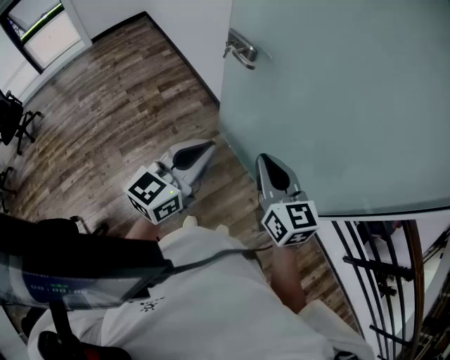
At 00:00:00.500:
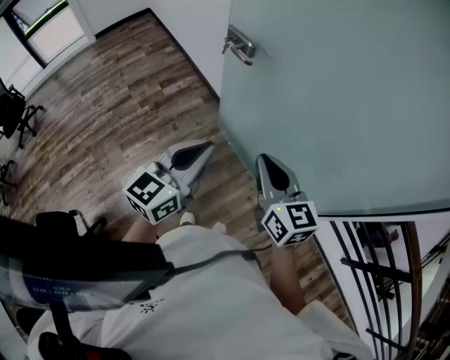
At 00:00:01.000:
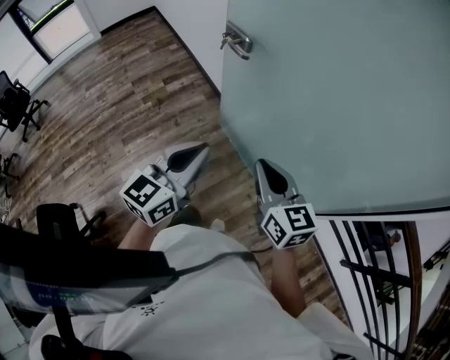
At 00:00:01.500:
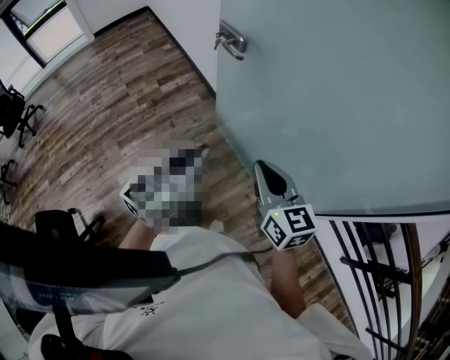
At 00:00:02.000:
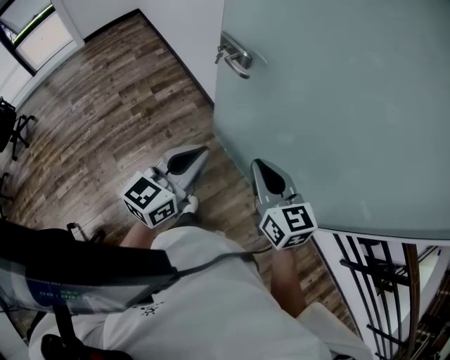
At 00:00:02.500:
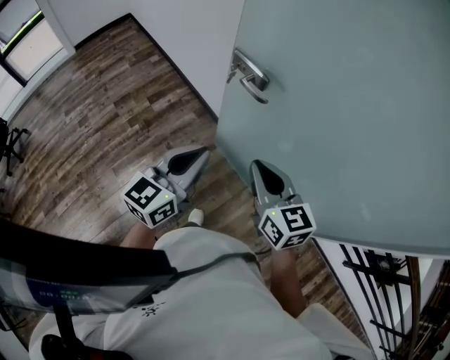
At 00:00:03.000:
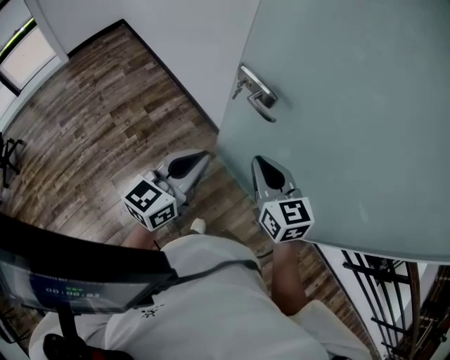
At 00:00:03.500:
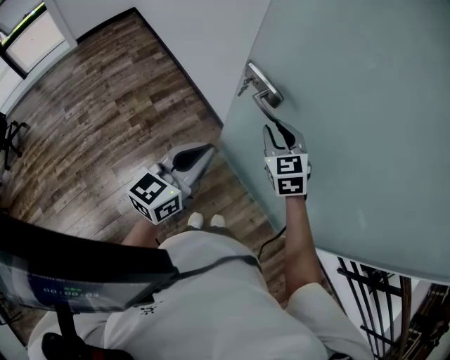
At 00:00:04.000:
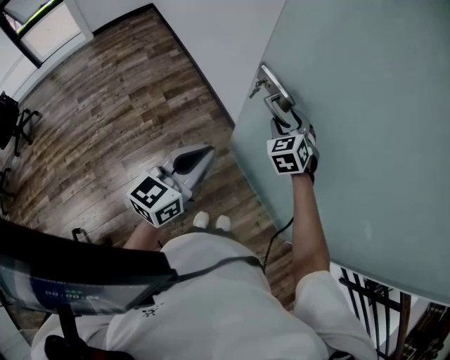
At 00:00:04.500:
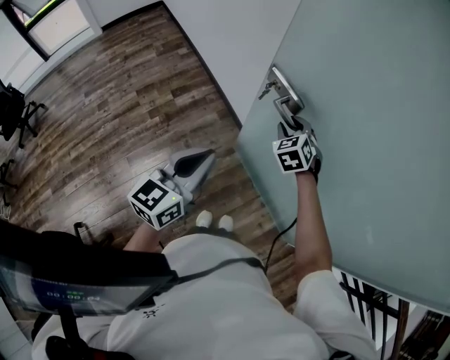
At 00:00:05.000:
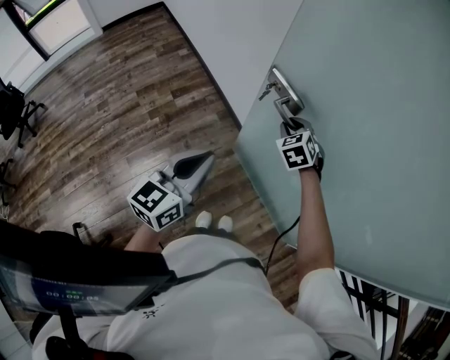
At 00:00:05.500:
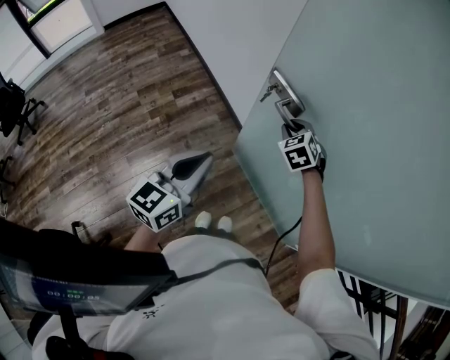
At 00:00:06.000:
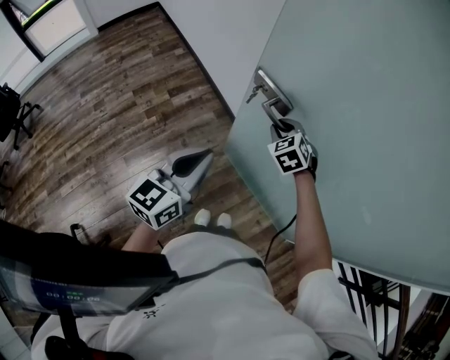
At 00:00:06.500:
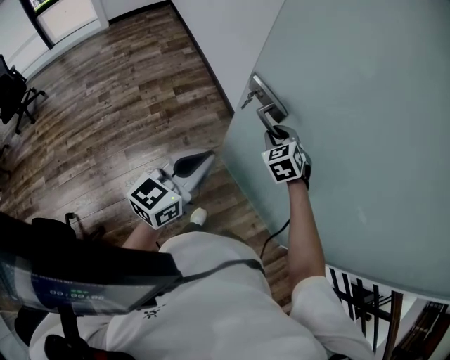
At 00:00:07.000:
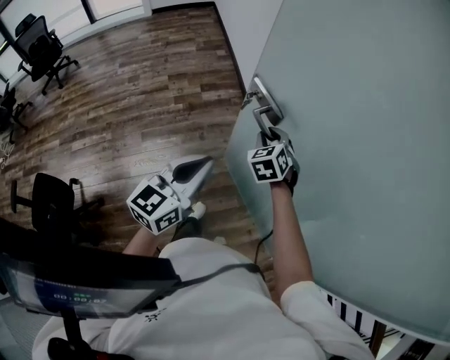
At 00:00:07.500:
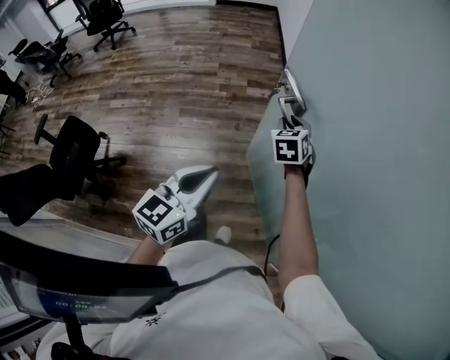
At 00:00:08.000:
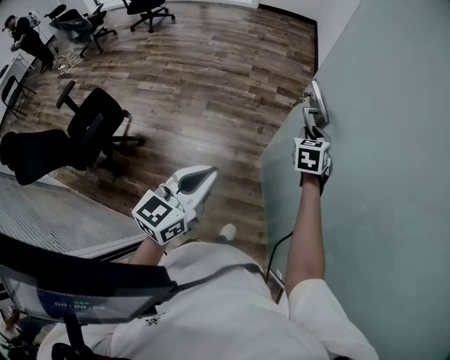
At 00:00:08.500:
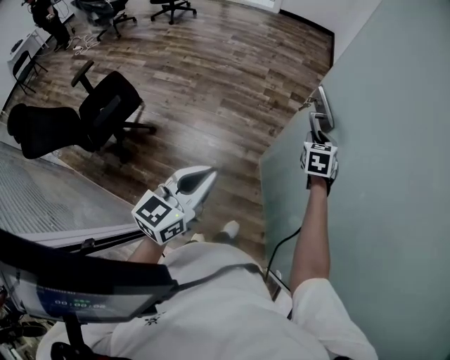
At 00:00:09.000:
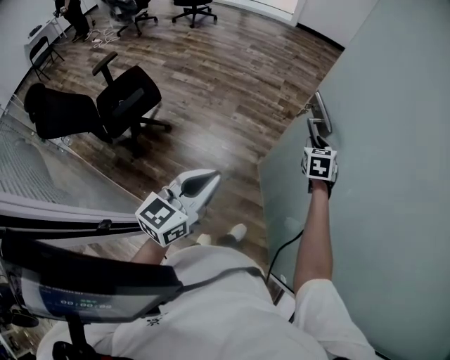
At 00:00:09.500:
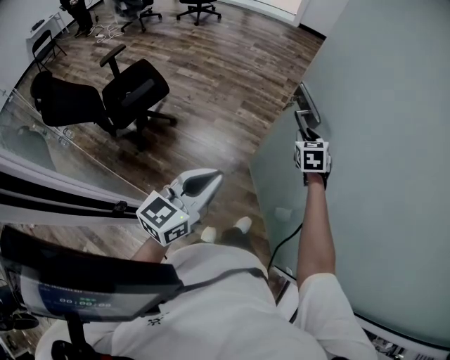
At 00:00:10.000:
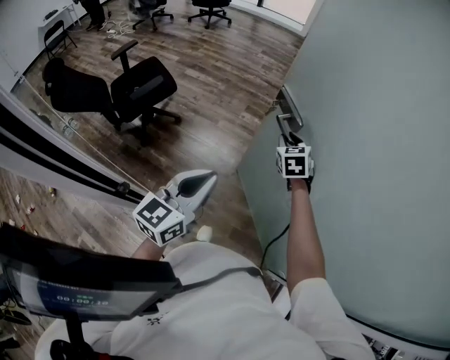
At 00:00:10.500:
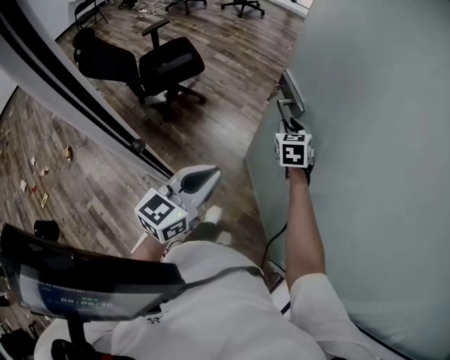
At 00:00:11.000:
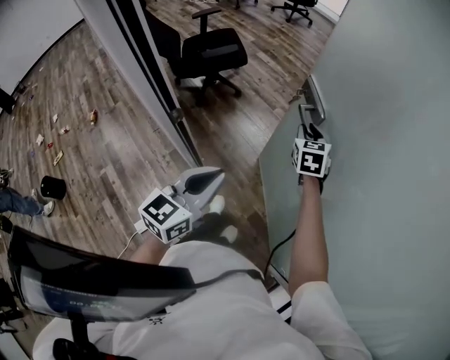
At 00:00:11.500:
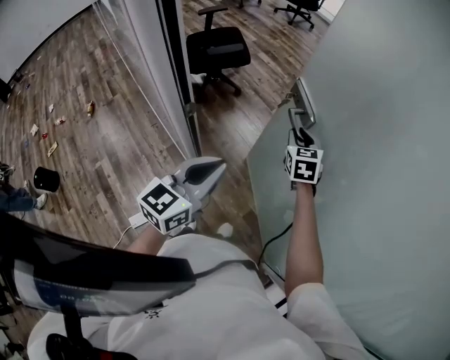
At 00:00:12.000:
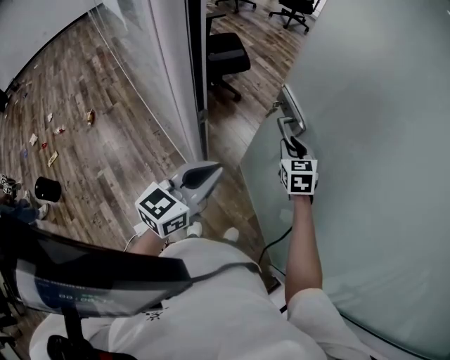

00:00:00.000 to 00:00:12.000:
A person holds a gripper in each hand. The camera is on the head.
00:00:00.000 to 00:00:02.000: Both grippers travel together forward, some 10 cm.
00:00:02.000 to 00:00:04.000: The right gripper moves forward, some 30 cm, rolls counterclockwise, seen from behind, by about 40 degrees, and opens its fingers; the left gripper travels to the left and forward by some 20 cm.
00:00:04.000 to 00:00:06.000: The left gripper ends up some 5 cm from where it was. The right gripper shifts roughly 5 cm backward, and closes.
00:00:06.000 to 00:00:08.000: The right gripper changes place by about 20 cm, while the left gripper ends up some 35 cm from where it was, and changes its angle by some 40 degrees.
00:00:08.000 to 00:00:10.000: Both grippers move backward and to the left, about 35 cm. The right gripper changes its angle by roughly 30 degrees.
00:00:10.000 to 00:00:12.000: The two grippers go roughly 25 cm backward and to the left. The right gripper turns by some 20 degrees.

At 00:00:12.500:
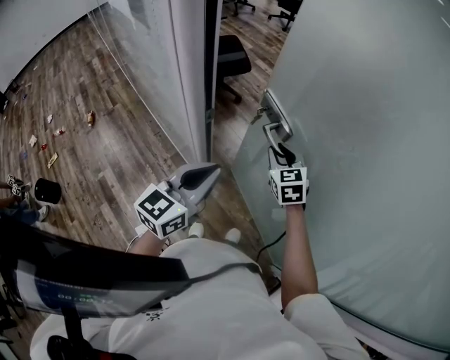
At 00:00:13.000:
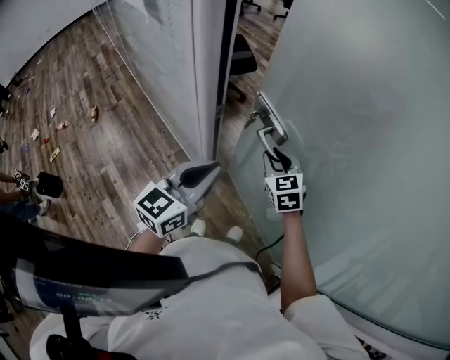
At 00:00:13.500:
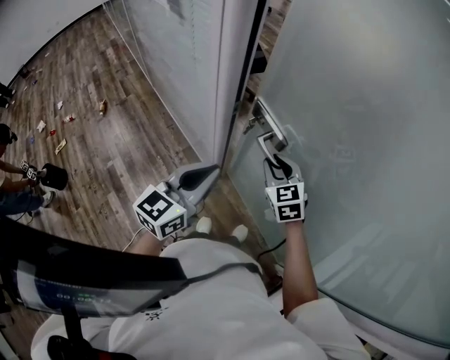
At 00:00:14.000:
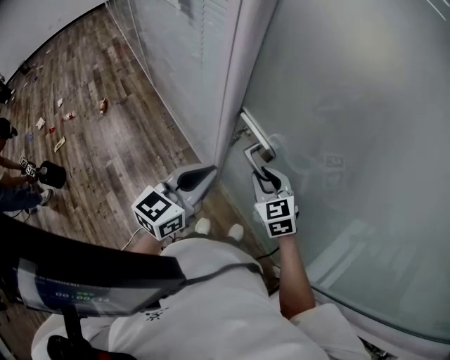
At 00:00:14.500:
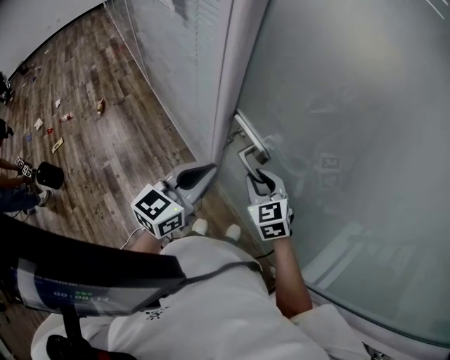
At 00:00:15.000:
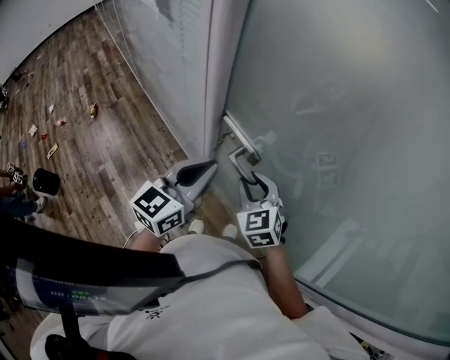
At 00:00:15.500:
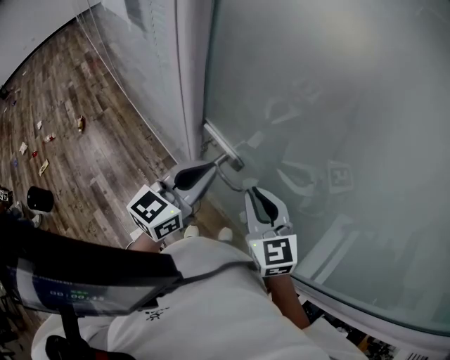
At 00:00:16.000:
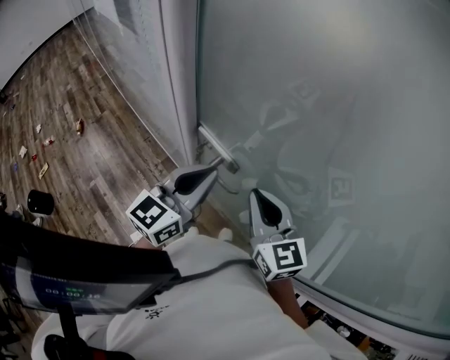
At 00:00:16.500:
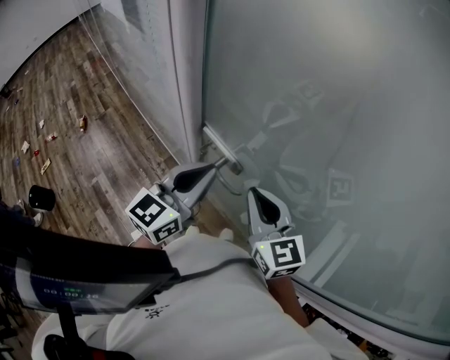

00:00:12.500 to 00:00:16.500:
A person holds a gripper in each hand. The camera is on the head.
00:00:12.500 to 00:00:14.500: The left gripper travels to the left and backward by about 10 cm, while the right gripper shifts roughly 20 cm backward and to the left.
00:00:14.500 to 00:00:16.500: The left gripper is displaced to the right and forward by about 10 cm. The right gripper heads upward and to the right, covering some 15 cm, turns by roughly 20 degrees, and closes.

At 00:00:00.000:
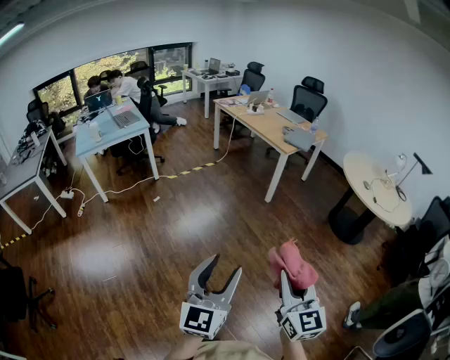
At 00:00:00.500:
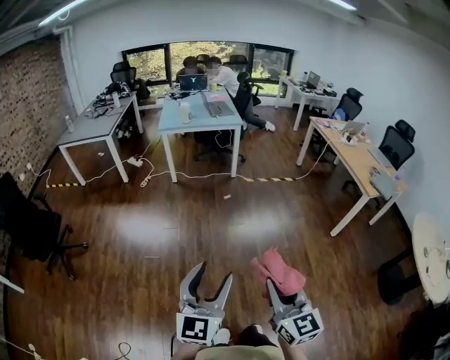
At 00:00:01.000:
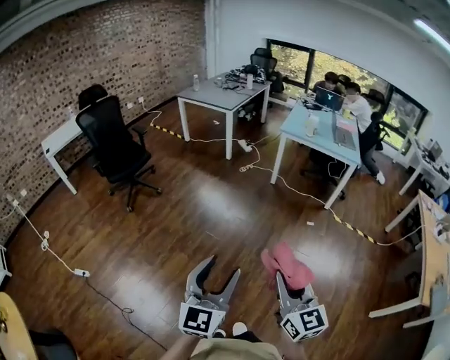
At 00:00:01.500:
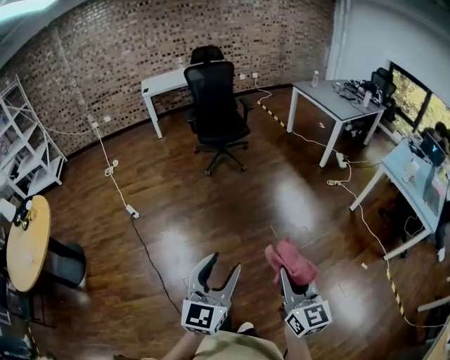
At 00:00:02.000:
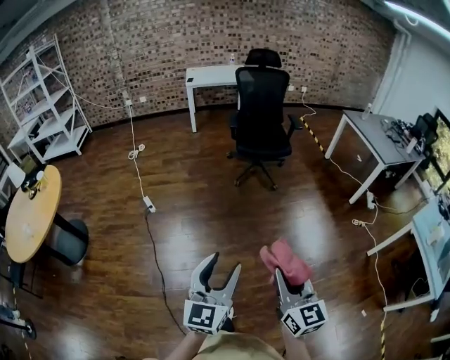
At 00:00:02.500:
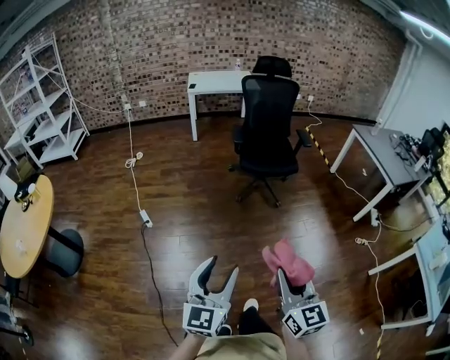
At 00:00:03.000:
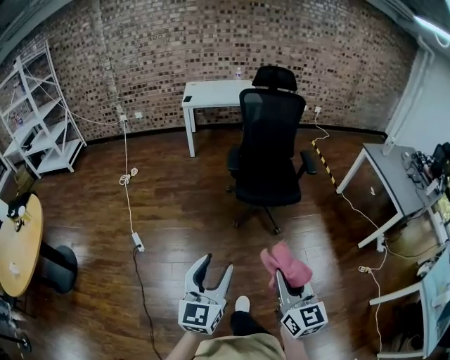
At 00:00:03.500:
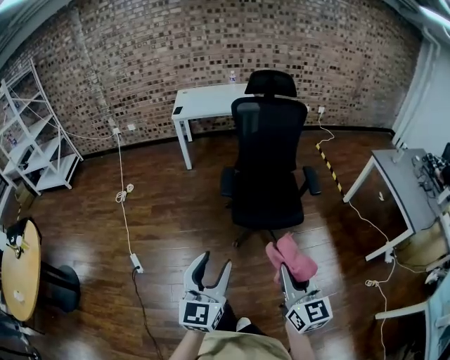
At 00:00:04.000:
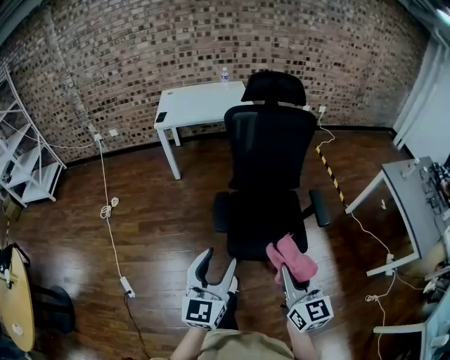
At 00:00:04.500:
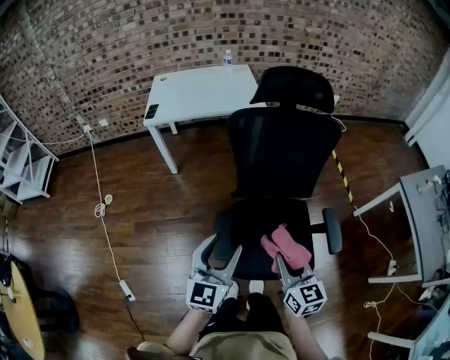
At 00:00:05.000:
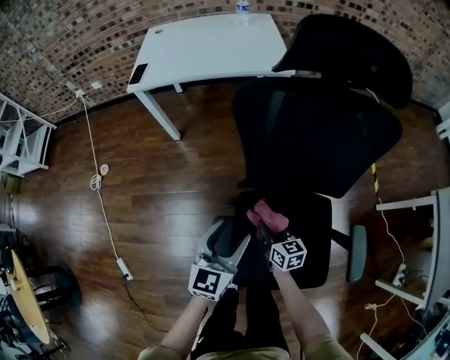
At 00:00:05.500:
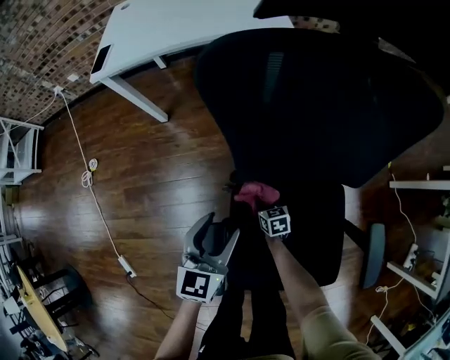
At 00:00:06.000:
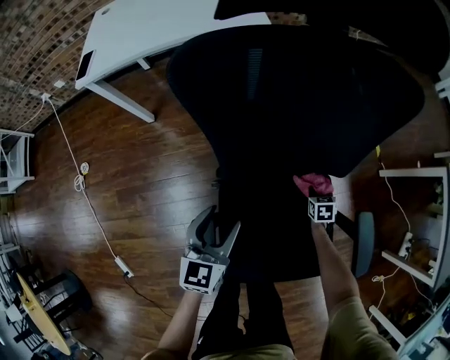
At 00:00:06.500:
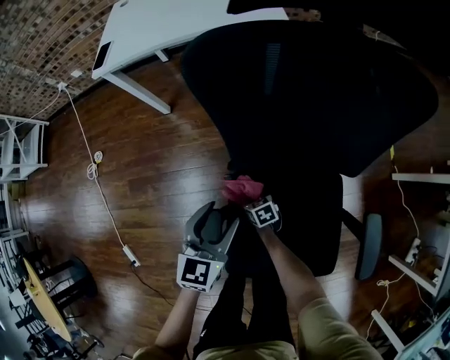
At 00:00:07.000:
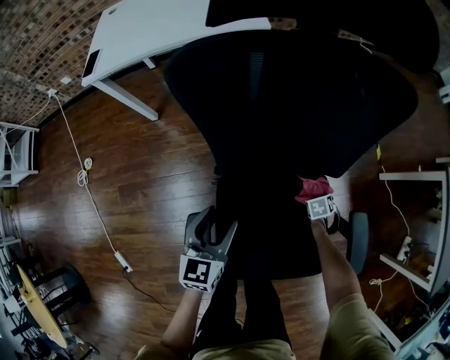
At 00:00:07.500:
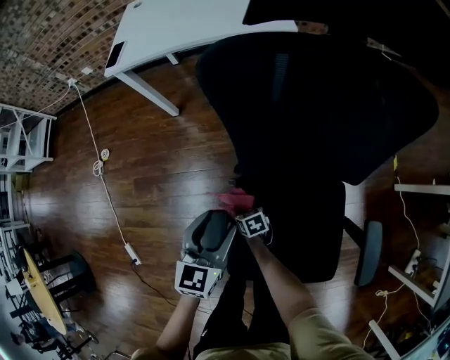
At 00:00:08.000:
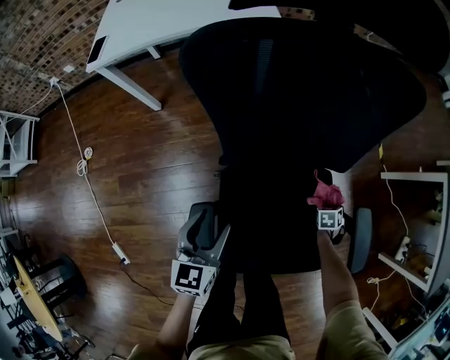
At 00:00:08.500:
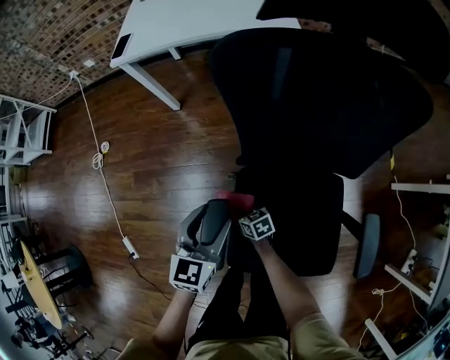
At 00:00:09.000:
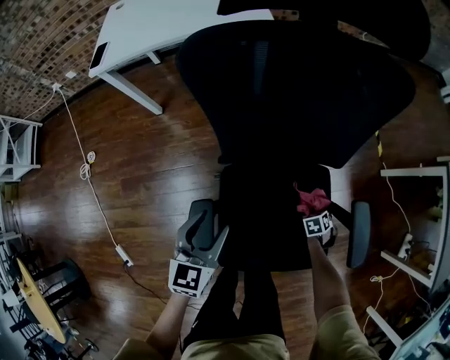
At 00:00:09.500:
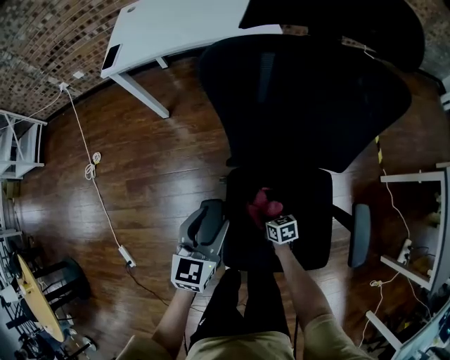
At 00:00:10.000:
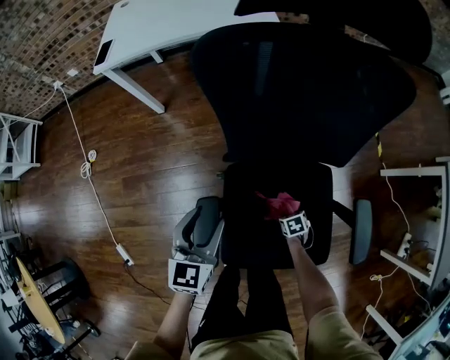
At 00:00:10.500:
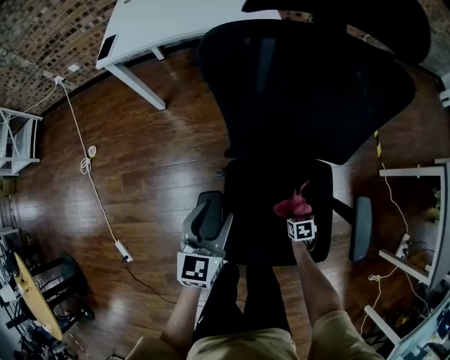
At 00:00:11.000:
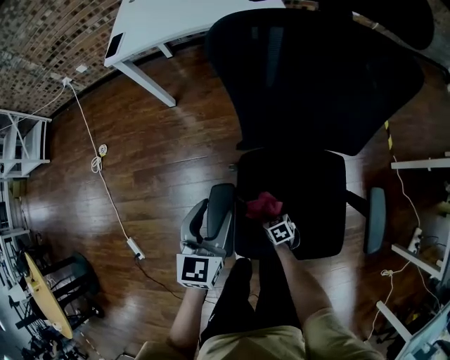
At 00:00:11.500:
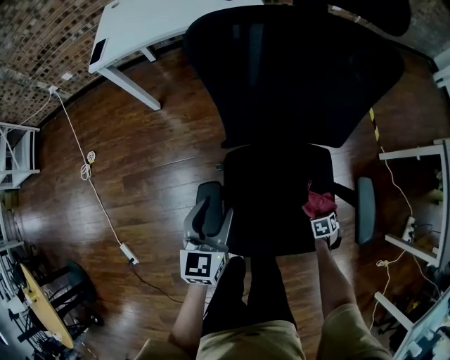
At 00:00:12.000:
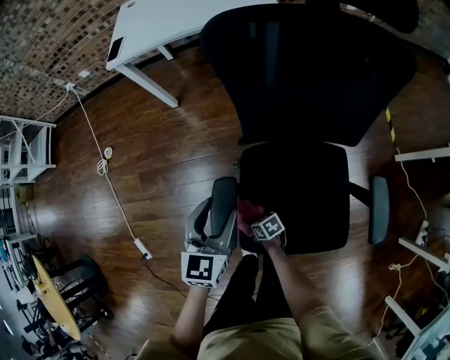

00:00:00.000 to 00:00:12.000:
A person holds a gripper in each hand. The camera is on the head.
00:00:00.000 to 00:00:02.000: The pair of grippers is taken roughly 70 cm. The right gripper swivels some 120 degrees. Meanwhile the left gripper changes its angle by about 110 degrees.
00:00:02.000 to 00:00:04.000: The pair of grippers is taken forward, some 90 cm.
00:00:04.000 to 00:00:06.000: Both grippers are carried forward, about 50 cm. The right gripper travels downward by approximately 60 cm, and tips its fingers downward by some 50 degrees. Meanwhile the left gripper is displaced downward by some 30 cm, and swivels some 20 degrees.
00:00:06.000 to 00:00:08.000: The left gripper shifts by about 5 cm. Meanwhile the right gripper swivels about 20 degrees.
00:00:08.000 to 00:00:10.000: The right gripper moves up and down over some 10 cm, changing direction 3 times, and rotates roughly 20 degrees.
00:00:10.000 to 00:00:12.000: The right gripper changes place by about 25 cm, and angles its fingers upward, by some 30 degrees.
